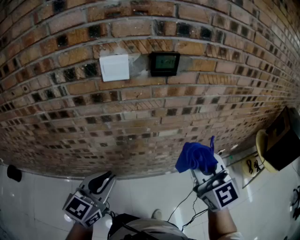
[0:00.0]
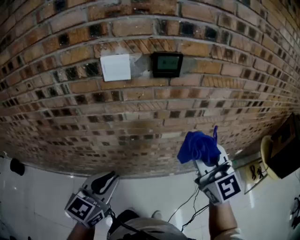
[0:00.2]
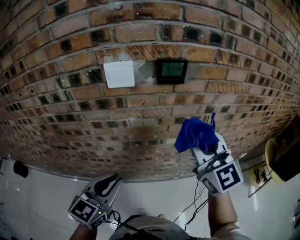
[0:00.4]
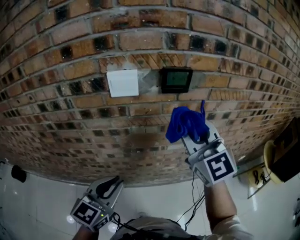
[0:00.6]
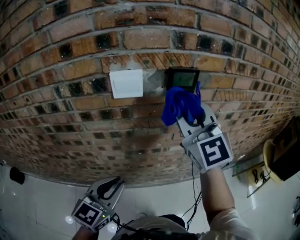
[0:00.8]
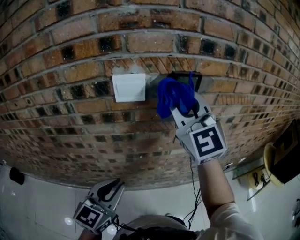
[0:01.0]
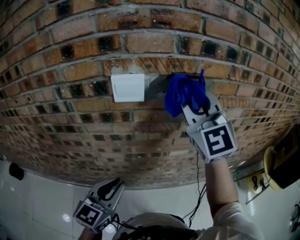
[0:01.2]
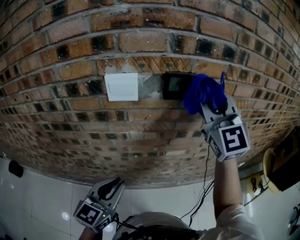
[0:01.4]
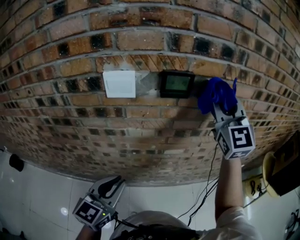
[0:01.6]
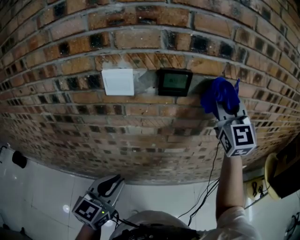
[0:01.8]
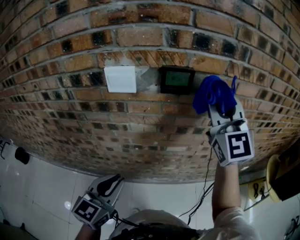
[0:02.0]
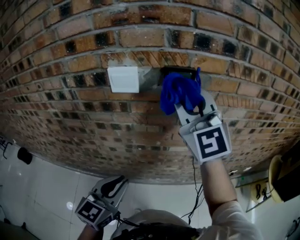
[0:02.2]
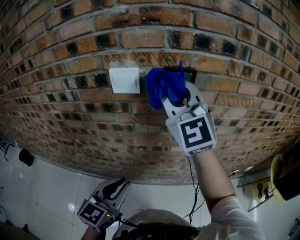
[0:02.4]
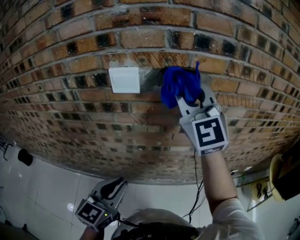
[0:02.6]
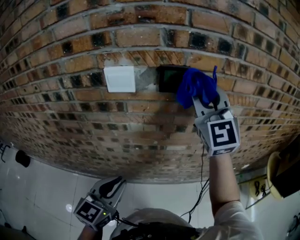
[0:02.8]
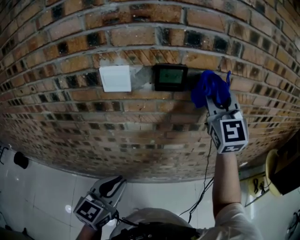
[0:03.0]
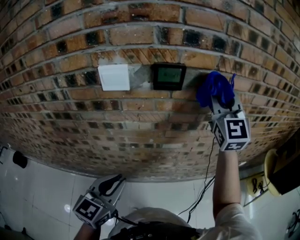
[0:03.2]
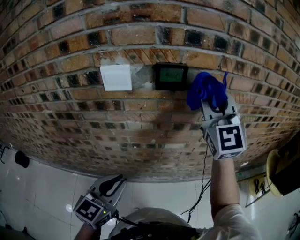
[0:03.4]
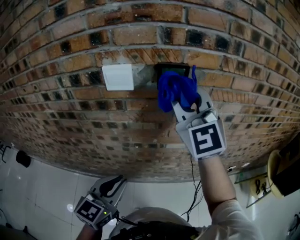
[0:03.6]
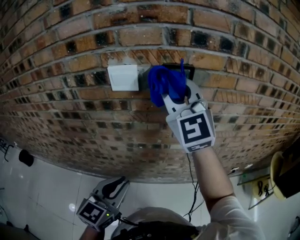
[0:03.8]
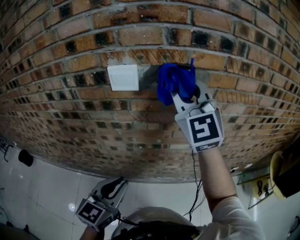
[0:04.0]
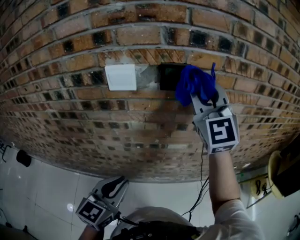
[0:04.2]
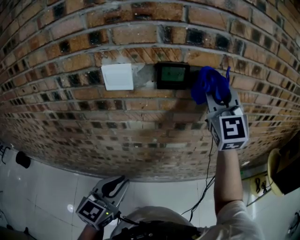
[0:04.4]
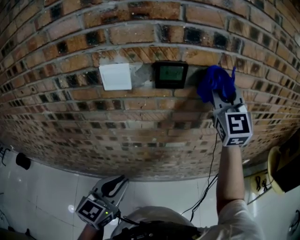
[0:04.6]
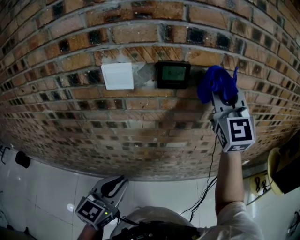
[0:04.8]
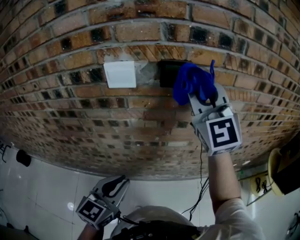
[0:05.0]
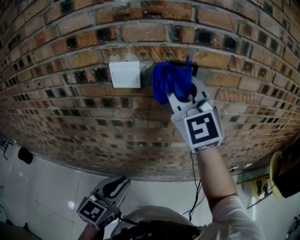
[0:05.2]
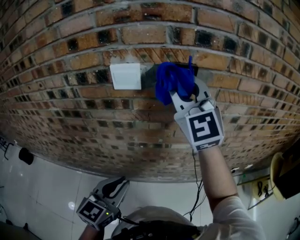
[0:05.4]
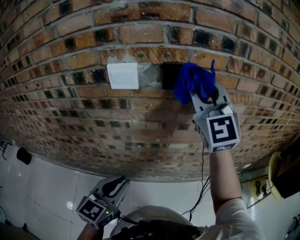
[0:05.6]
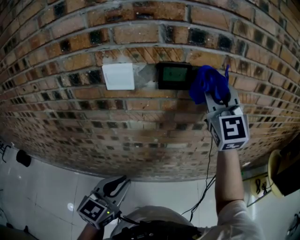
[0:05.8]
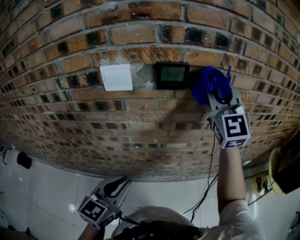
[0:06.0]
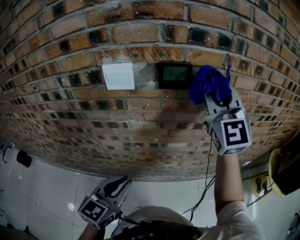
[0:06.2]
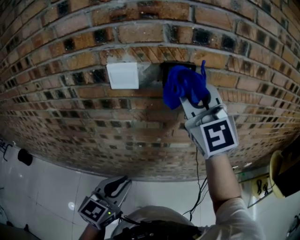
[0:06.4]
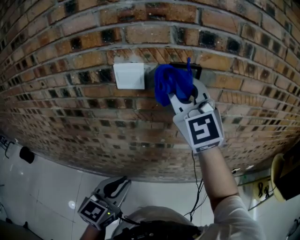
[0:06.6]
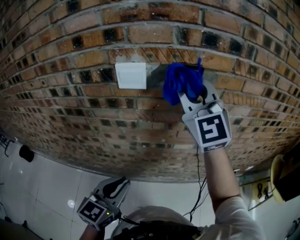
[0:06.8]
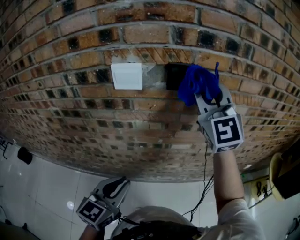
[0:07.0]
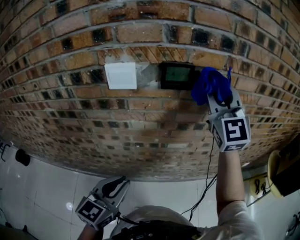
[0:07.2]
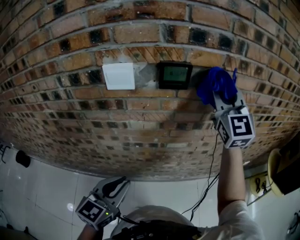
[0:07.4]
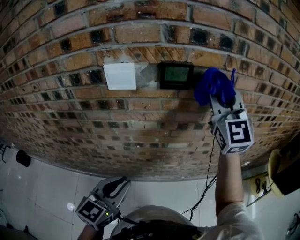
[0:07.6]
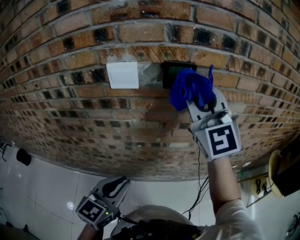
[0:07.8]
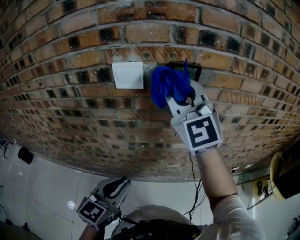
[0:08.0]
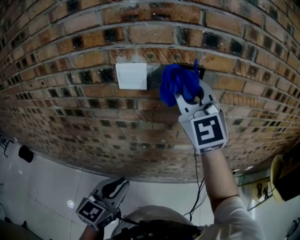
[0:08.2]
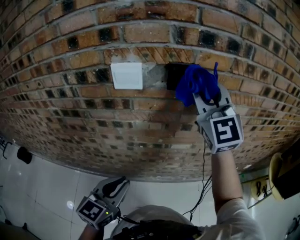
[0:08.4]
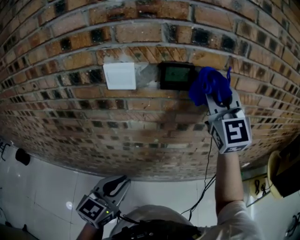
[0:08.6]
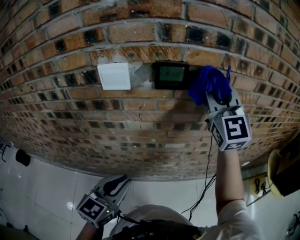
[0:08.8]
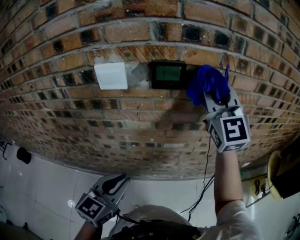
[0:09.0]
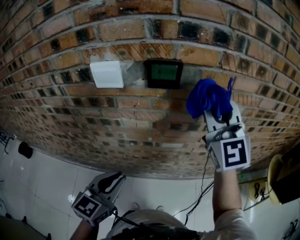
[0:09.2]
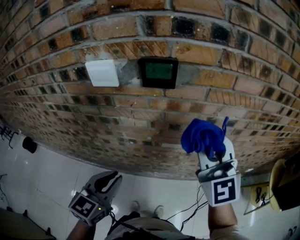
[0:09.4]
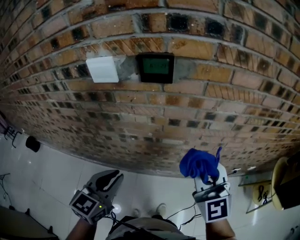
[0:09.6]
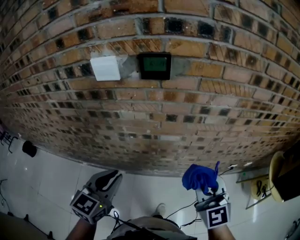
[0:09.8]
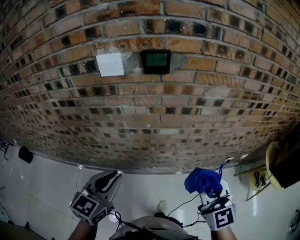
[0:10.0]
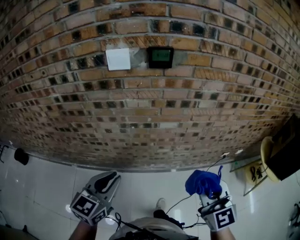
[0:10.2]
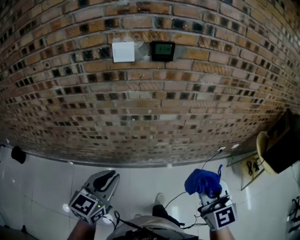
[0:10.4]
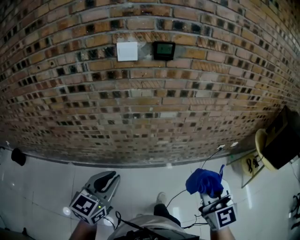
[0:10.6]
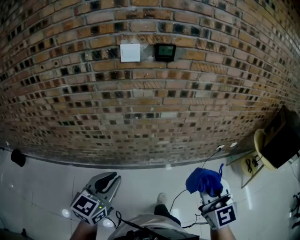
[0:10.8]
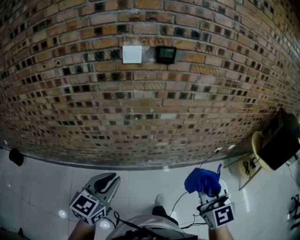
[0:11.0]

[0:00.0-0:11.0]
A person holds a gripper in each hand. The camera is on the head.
0:00.0 to 0:01.6: The left gripper heads forward, covering some 5 cm. Meanwhile the right gripper shifts approximately 25 cm forward and upward, and swivels roughly 20 degrees.
0:01.6 to 0:03.2: The right gripper goes to the left and returns, approximately 15 cm each way.
0:03.2 to 0:04.8: The right gripper moves roughly 20 cm to the left and comes back.
0:04.8 to 0:06.2: The right gripper goes to the left and returns, approximately 15 cm each way.
0:06.2 to 0:07.8: The right gripper swings left and right, some 15 cm each way, with 2 reversals.
0:07.8 to 0:09.4: The right gripper shifts about 15 cm to the right and downward. Meanwhile the left gripper ends up approximately 5 cm from where it was.
0:09.4 to 0:11.0: The right gripper heads backward, covering about 40 cm; the left gripper goes roughly 25 cm backward.

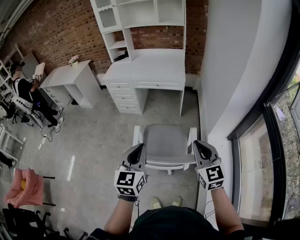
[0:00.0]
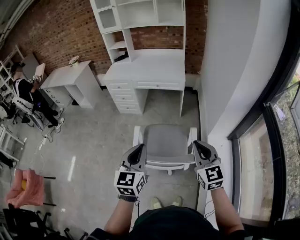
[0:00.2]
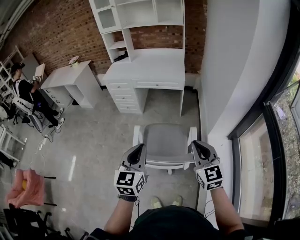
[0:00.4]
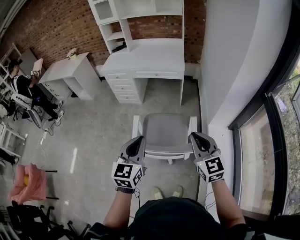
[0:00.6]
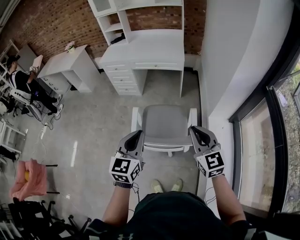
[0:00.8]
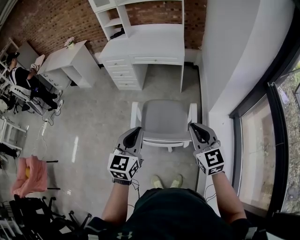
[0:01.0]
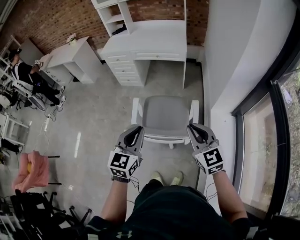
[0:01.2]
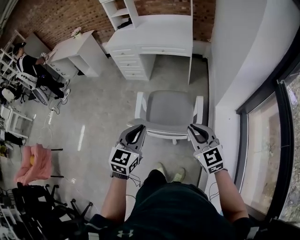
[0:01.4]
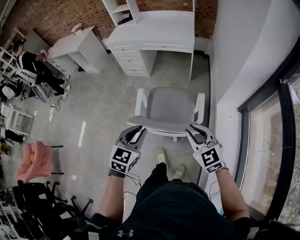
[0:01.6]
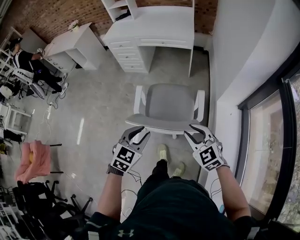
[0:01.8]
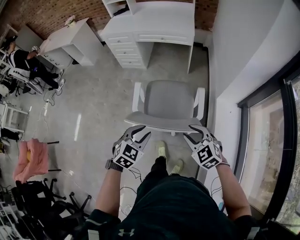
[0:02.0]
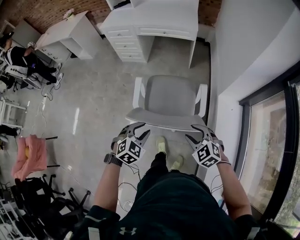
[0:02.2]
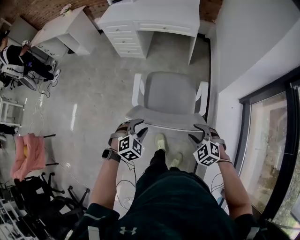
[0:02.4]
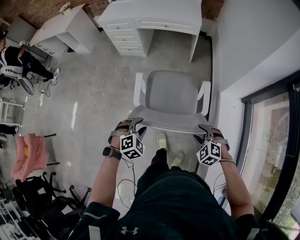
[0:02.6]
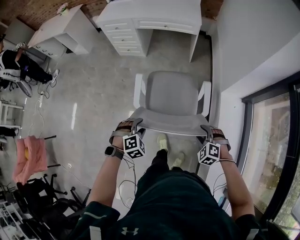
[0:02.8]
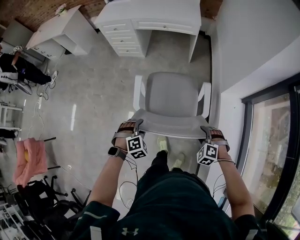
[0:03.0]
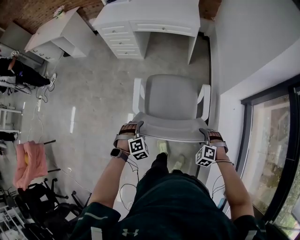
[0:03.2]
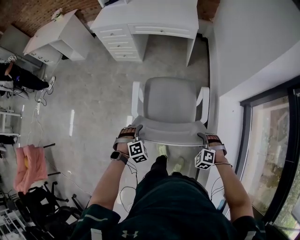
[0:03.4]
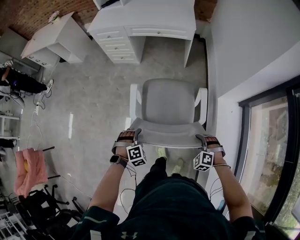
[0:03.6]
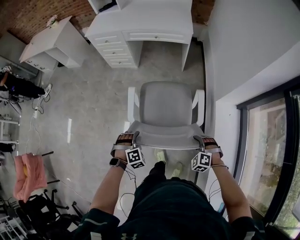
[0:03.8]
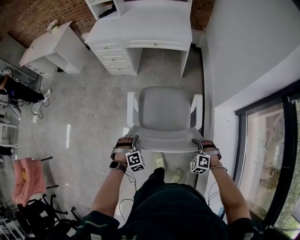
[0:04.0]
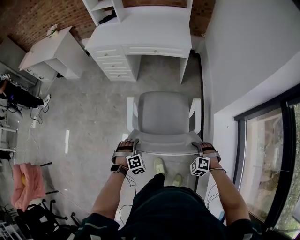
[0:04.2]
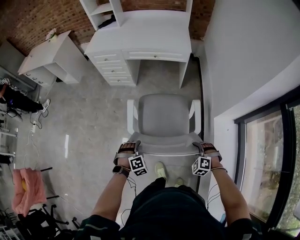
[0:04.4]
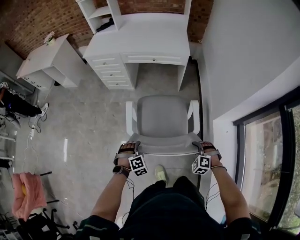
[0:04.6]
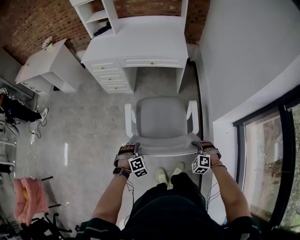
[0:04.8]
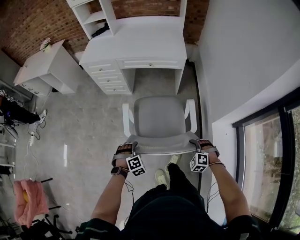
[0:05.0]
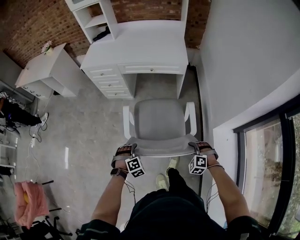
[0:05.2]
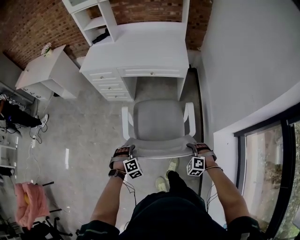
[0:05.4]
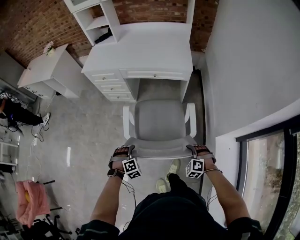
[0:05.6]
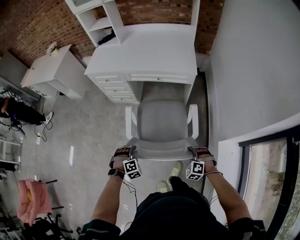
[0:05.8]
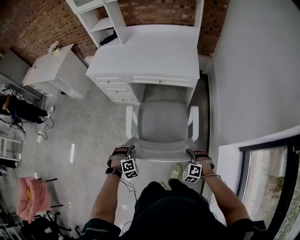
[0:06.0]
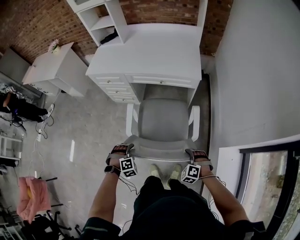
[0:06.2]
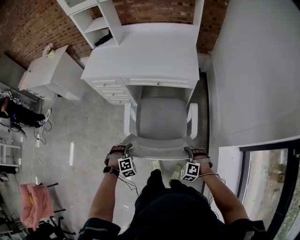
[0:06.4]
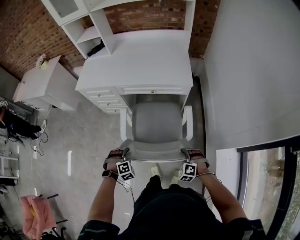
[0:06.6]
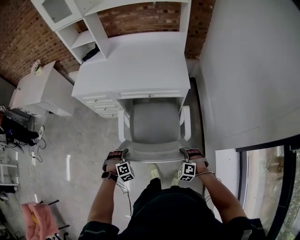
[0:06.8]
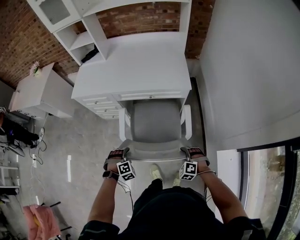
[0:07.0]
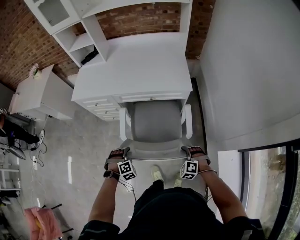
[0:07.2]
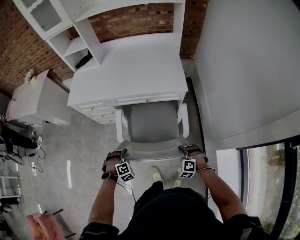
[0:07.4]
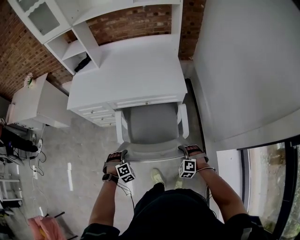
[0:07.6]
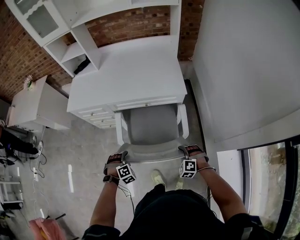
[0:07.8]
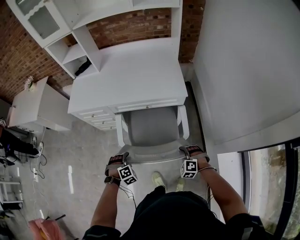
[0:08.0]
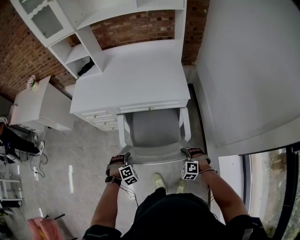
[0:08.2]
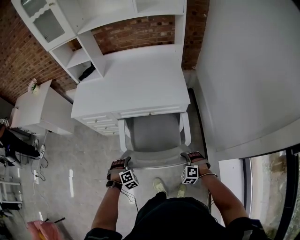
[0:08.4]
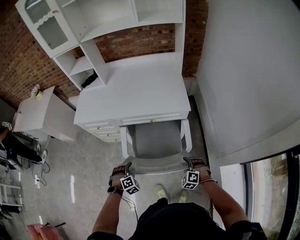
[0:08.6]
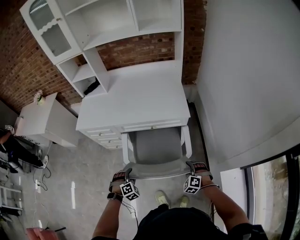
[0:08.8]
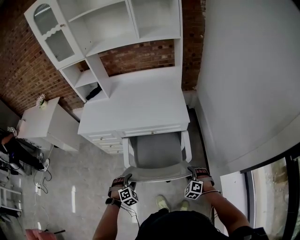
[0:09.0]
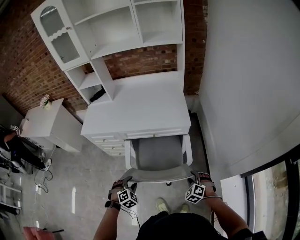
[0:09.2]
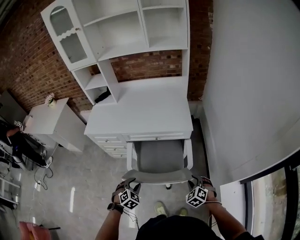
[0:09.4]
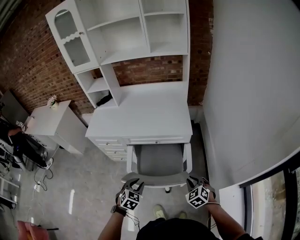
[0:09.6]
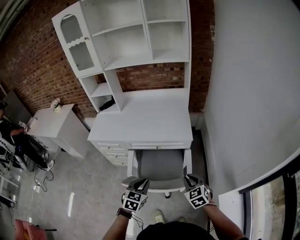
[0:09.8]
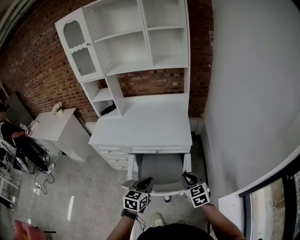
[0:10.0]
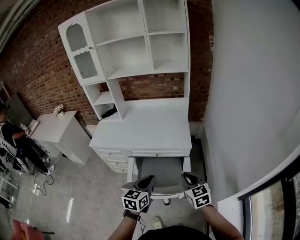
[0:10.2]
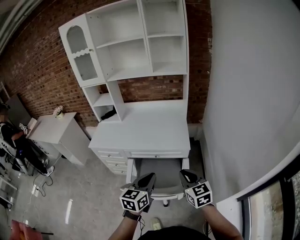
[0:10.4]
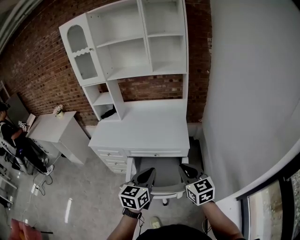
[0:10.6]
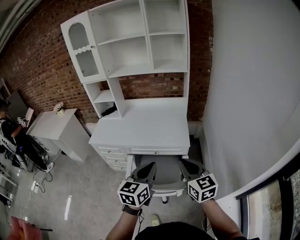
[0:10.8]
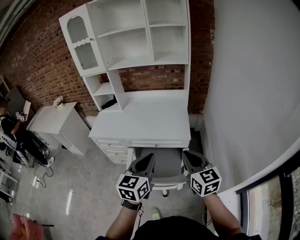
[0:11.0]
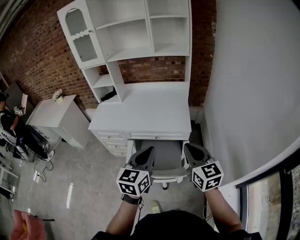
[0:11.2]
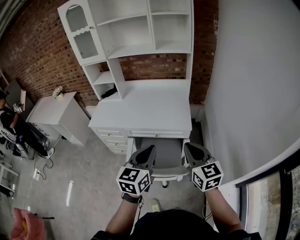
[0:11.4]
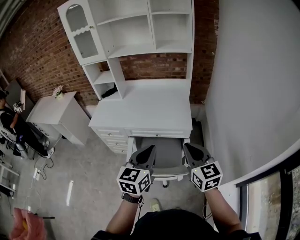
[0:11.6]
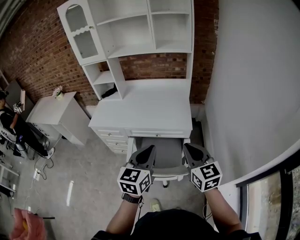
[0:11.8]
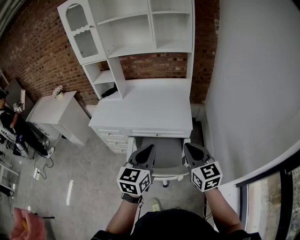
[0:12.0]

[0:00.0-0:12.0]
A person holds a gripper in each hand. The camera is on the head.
0:00.0 to 0:01.6: Both grippers travel together downward, roughly 10 cm. The right gripper changes its angle by roughly 20 degrees, while the left gripper turns by about 20 degrees.
0:01.6 to 0:03.0: Both grippers move downward, roughly 25 cm. The left gripper points its fingers approximately 40 degrees further downward, and opens up. The right gripper tilts its fingers roughly 40 degrees downward, and opens its fingers.
0:03.0 to 0:04.4: Both grippers travel together forward, roughly 10 cm. The right gripper closes.
0:04.4 to 0:06.0: Both grippers travel together forward, about 20 cm.
0:06.0 to 0:07.6: Both grippers move forward, about 20 cm.
0:07.6 to 0:09.0: The left gripper opens up. The right gripper opens its fingers.
0:09.0 to 0:10.4: The left gripper goes approximately 35 cm upward and to the right, tips its fingers upward by about 40 degrees, and closes its fingers; the right gripper moves upward, about 30 cm, angles its fingers upward, by roughly 30 degrees, and closes.
0:10.4 to 0:12.0: Both grippers travel together upward, approximately 5 cm.

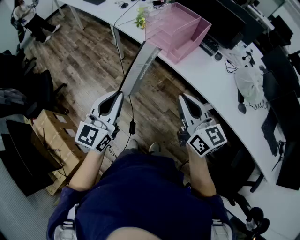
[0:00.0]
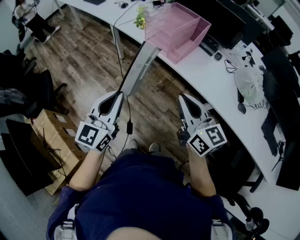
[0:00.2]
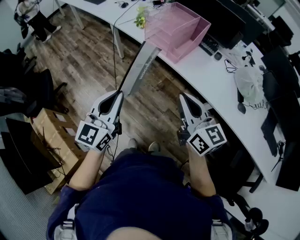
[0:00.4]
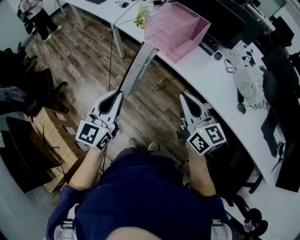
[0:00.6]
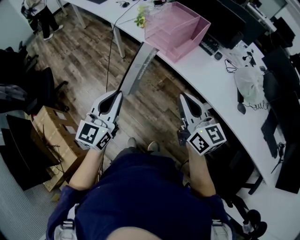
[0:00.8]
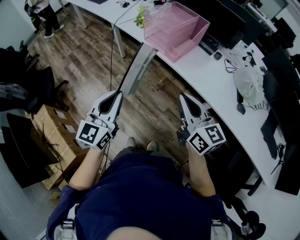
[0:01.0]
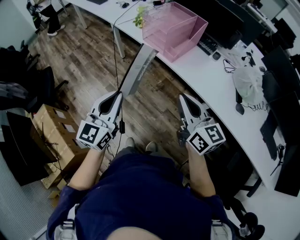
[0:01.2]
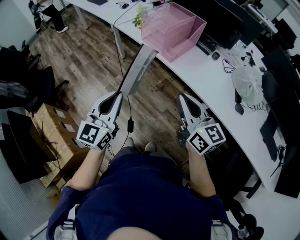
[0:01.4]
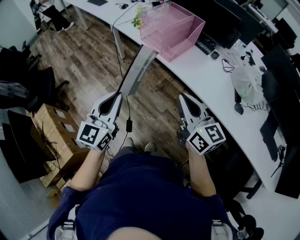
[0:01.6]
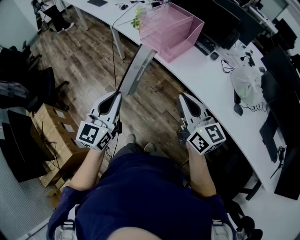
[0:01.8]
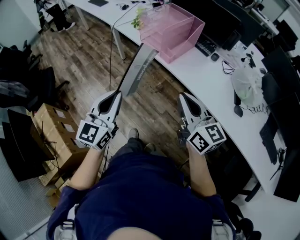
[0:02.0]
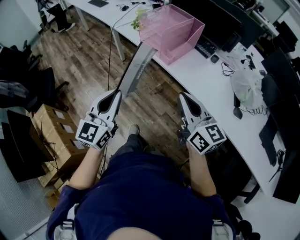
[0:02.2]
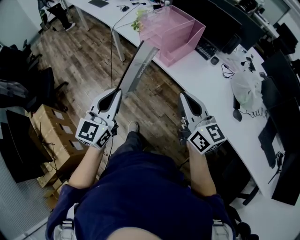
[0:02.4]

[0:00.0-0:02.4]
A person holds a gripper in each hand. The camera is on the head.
0:00.0 to 0:01.2: The left gripper ends up approximately 5 cm from where it was, while the right gripper heads to the right, covering roughly 5 cm.
0:01.2 to 0:02.4: The grippers stay close to where they were, moving slightly.
